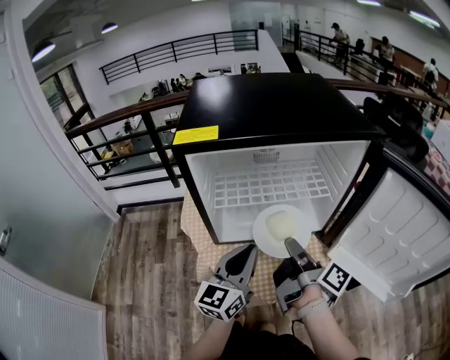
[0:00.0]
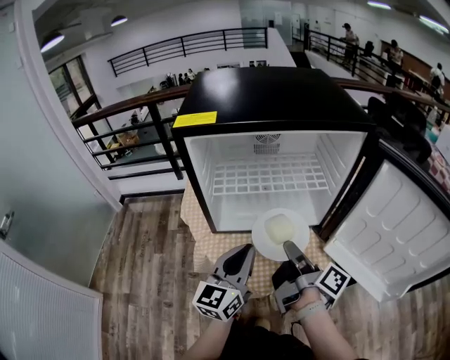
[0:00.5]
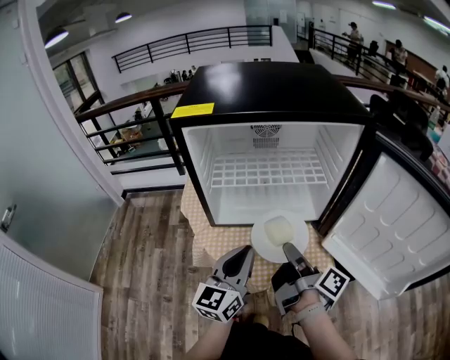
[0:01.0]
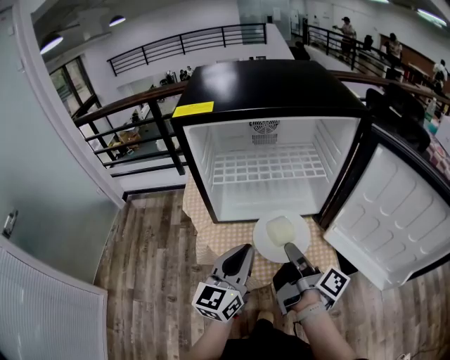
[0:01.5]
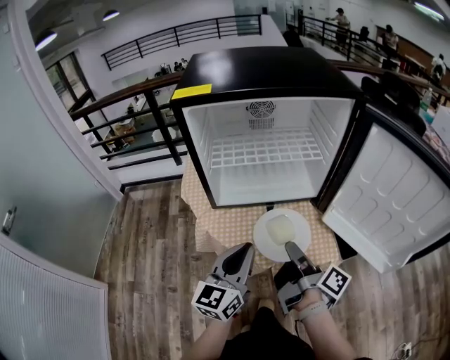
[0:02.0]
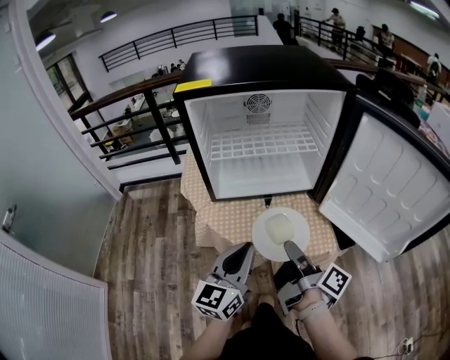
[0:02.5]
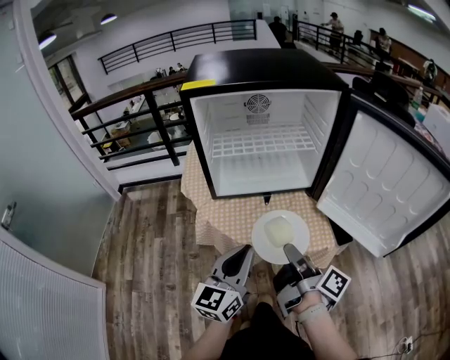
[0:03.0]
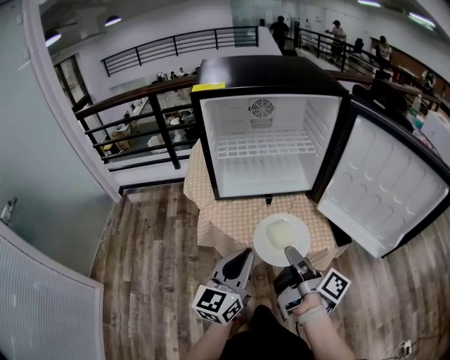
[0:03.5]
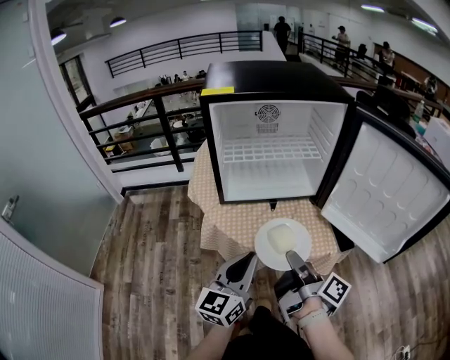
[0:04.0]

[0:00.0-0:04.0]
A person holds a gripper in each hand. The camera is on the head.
0:00.0 to 0:02.0: The grippers both shift backward by roughly 10 cm.
0:02.0 to 0:04.0: The two grippers go about 10 cm backward.

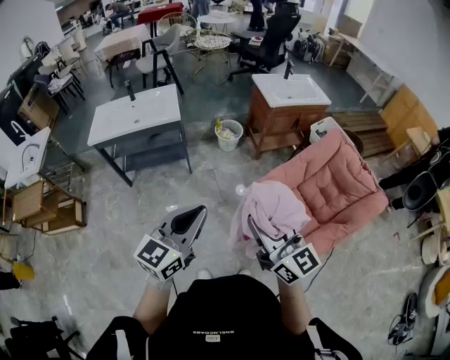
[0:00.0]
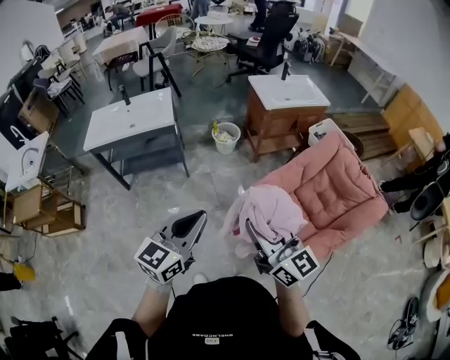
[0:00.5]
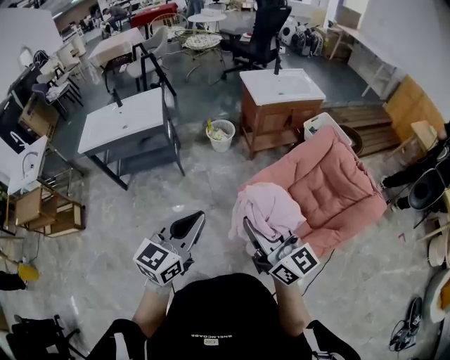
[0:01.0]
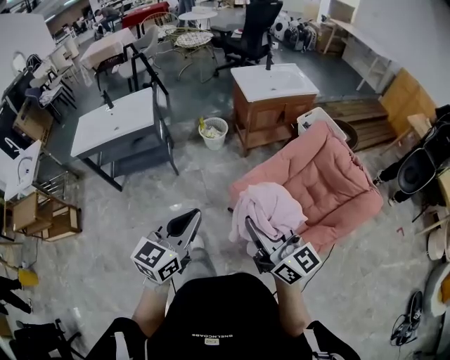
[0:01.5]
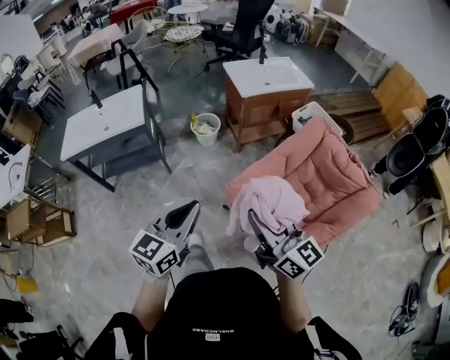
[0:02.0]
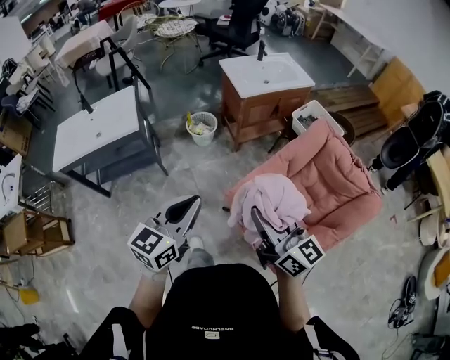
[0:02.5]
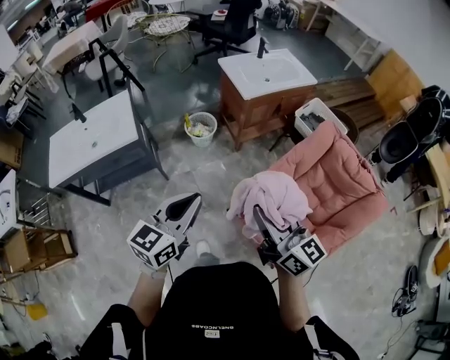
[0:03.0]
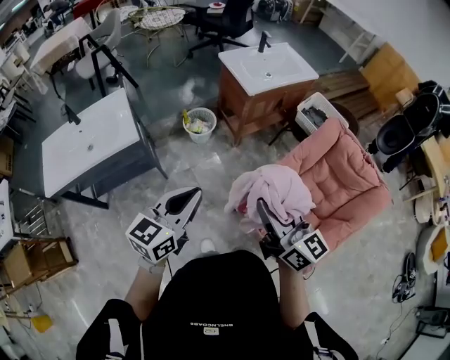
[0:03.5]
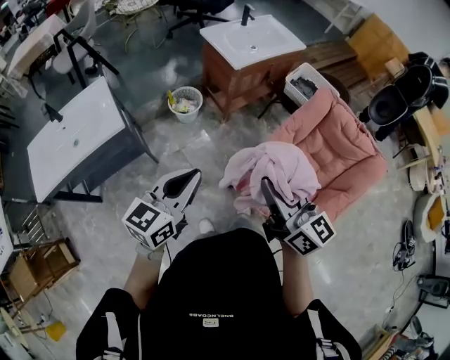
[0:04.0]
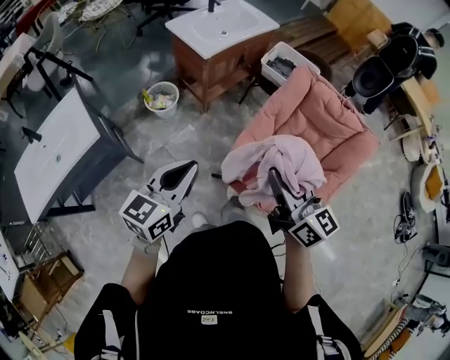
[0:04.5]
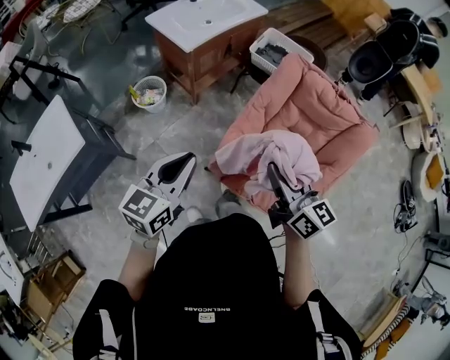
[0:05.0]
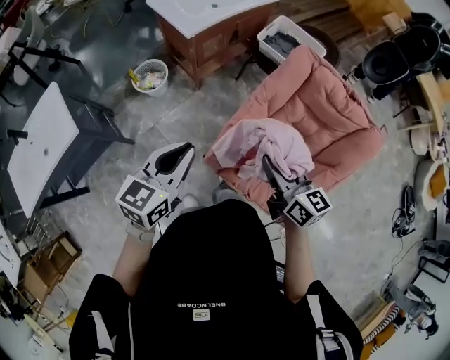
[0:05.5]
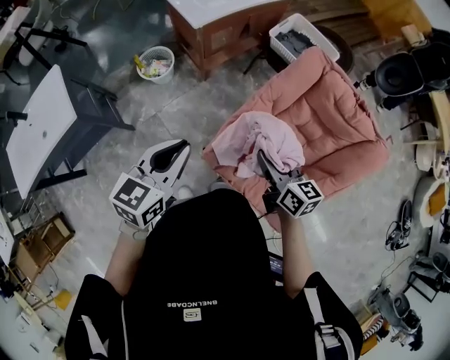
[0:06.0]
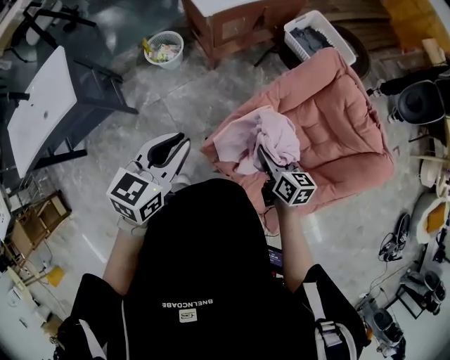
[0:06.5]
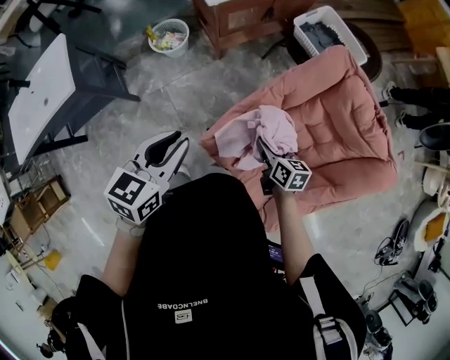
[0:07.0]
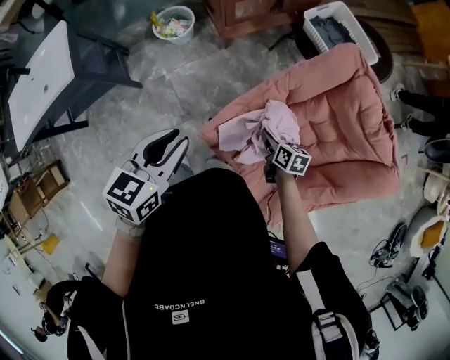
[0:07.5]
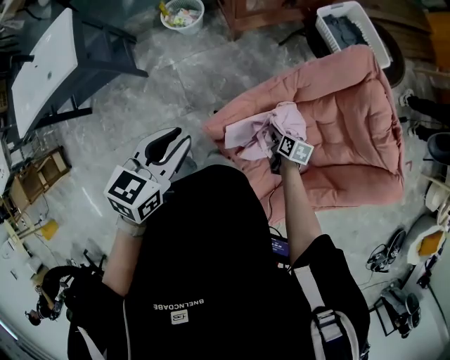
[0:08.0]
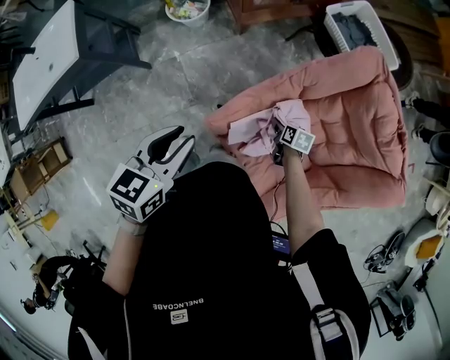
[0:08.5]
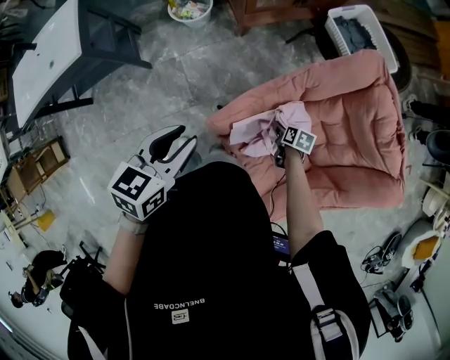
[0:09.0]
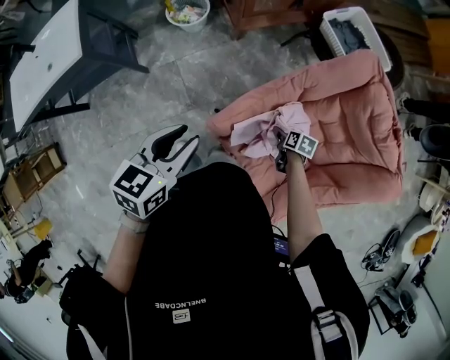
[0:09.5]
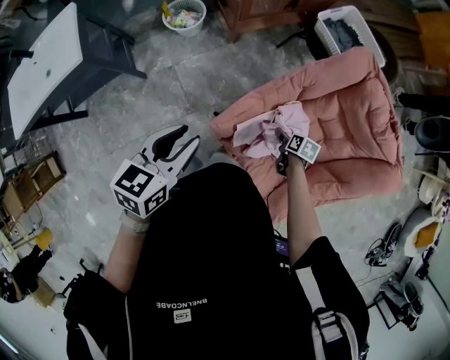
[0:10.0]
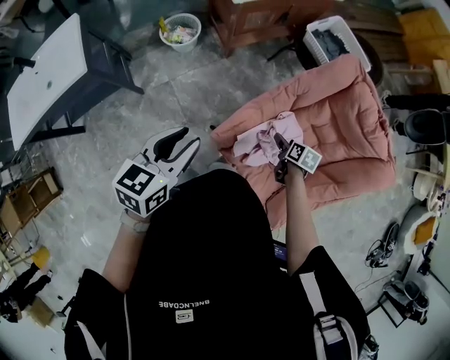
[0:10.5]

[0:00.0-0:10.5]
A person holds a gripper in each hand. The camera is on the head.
0:00.0 to 0:02.0: Both grippers move to the right and forward, about 20 cm.
0:02.0 to 0:04.0: The two grippers go some 30 cm forward and to the left. The left gripper swivels roughly 20 degrees.
0:04.0 to 0:06.5: The right gripper heads downward, to the right and forward, covering some 50 cm, and points its fingers approximately 30 degrees further downward; the left gripper travels forward, to the right and downward by some 35 cm.
0:06.5 to 0:08.5: The right gripper heads downward, covering roughly 30 cm, and rotates about 30 degrees. Meanwhile the left gripper shifts some 10 cm downward.
0:08.5 to 0:10.5: The right gripper goes some 15 cm upward and backward, while the left gripper heads to the left, covering about 10 cm.

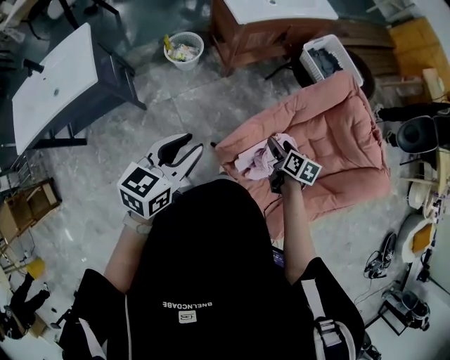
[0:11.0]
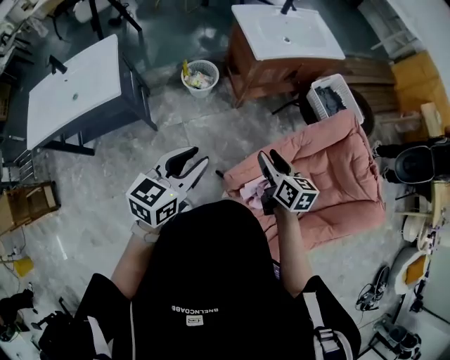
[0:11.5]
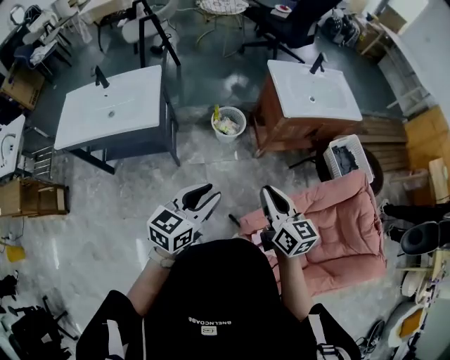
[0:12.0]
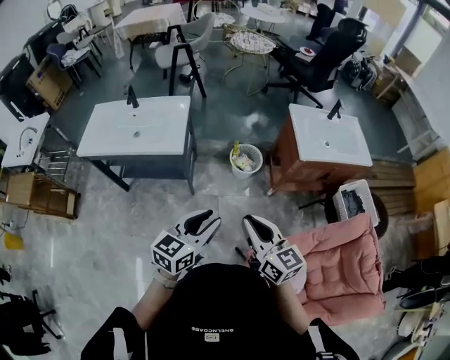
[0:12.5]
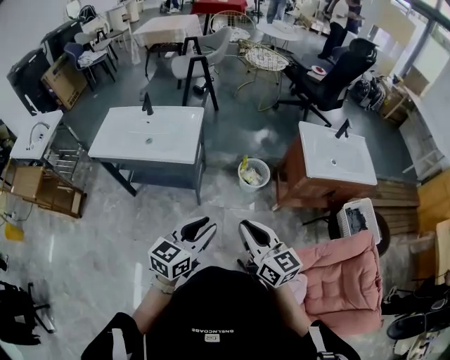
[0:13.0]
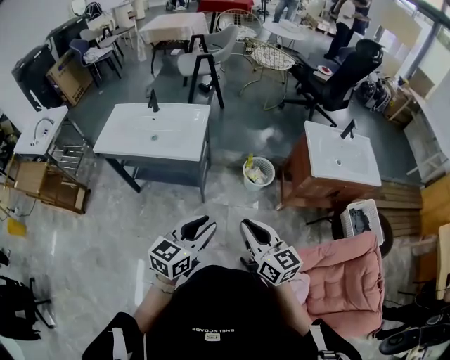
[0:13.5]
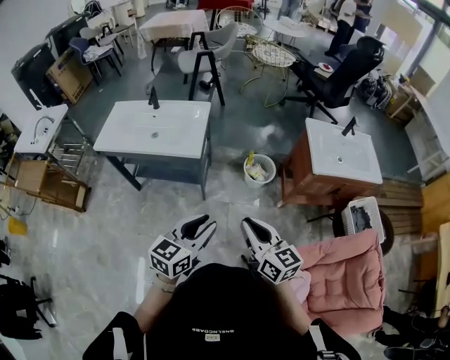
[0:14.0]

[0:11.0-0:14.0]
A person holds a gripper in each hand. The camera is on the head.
0:11.0 to 0:12.5: The left gripper ends up about 20 cm from where it was, and changes its angle by about 30 degrees. The right gripper ends up some 50 cm from where it was, points its fingers approximately 40 degrees further upward, and closes up.
0:12.5 to 0:14.0: The left gripper shifts approximately 5 cm to the left.

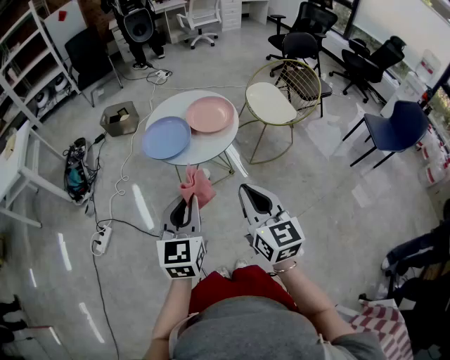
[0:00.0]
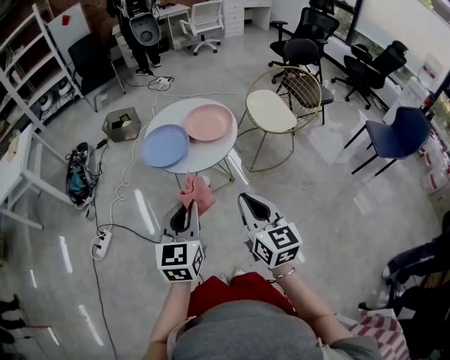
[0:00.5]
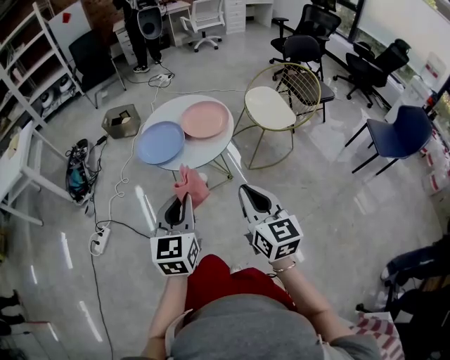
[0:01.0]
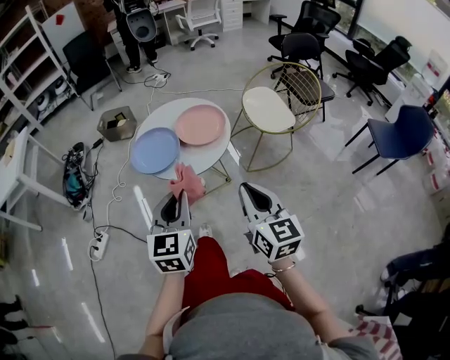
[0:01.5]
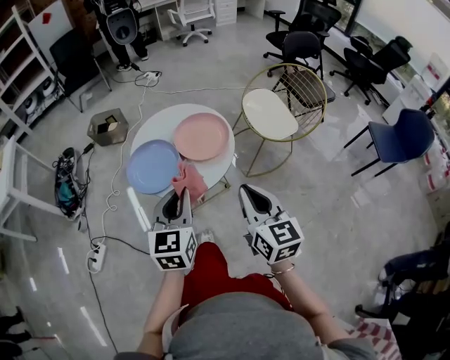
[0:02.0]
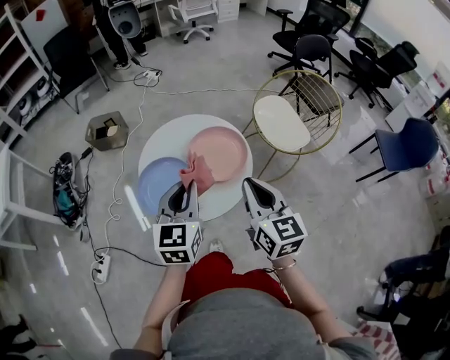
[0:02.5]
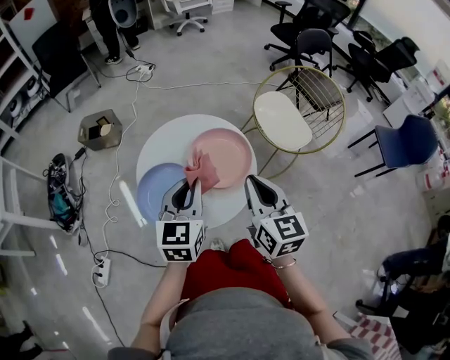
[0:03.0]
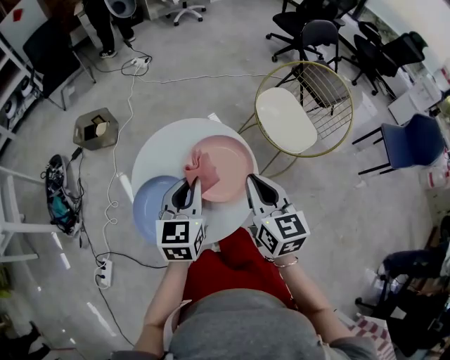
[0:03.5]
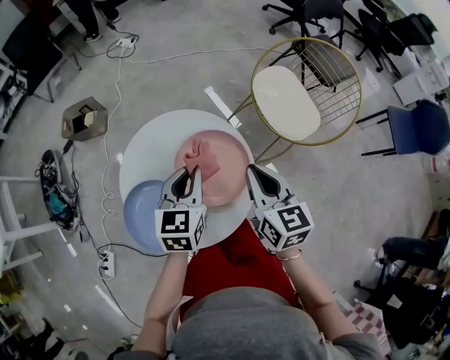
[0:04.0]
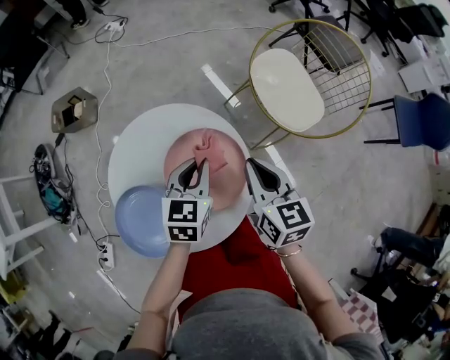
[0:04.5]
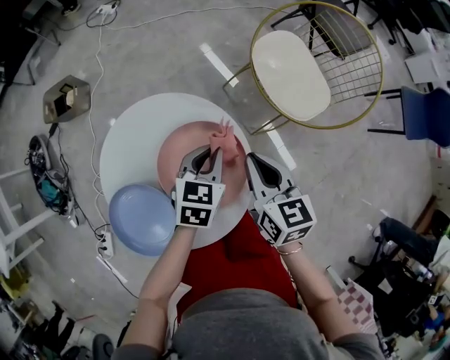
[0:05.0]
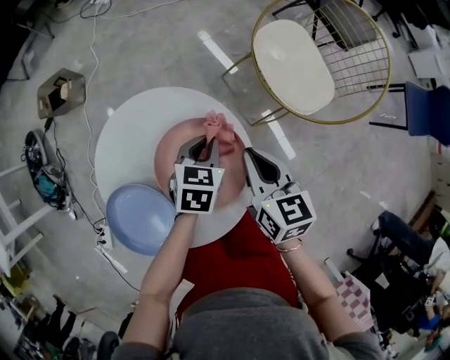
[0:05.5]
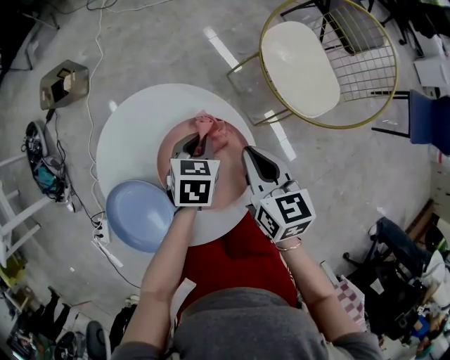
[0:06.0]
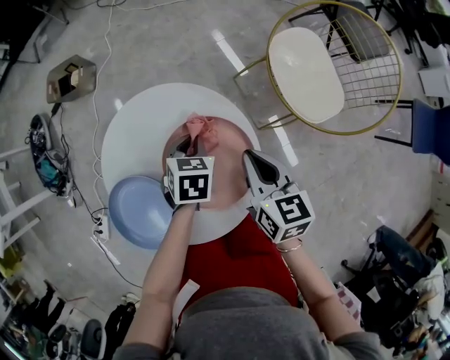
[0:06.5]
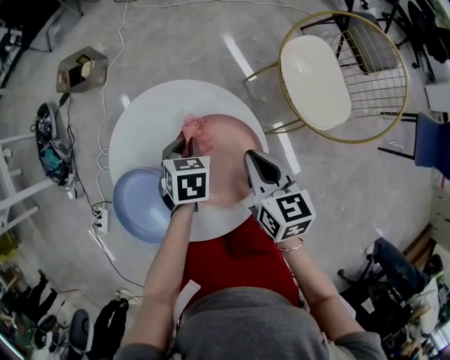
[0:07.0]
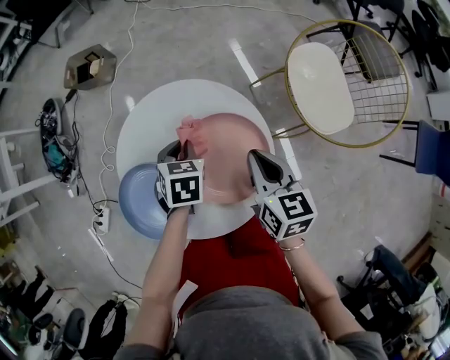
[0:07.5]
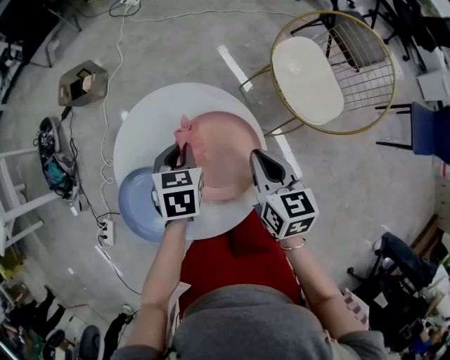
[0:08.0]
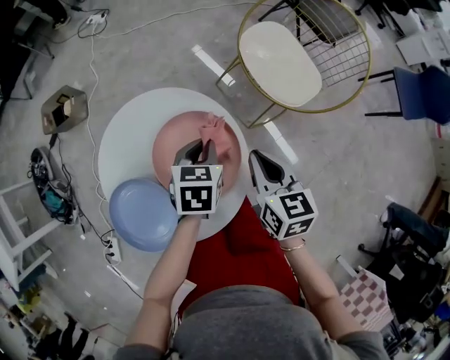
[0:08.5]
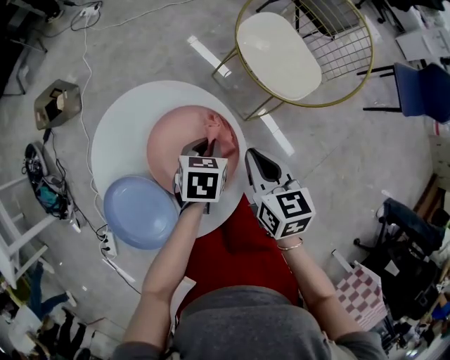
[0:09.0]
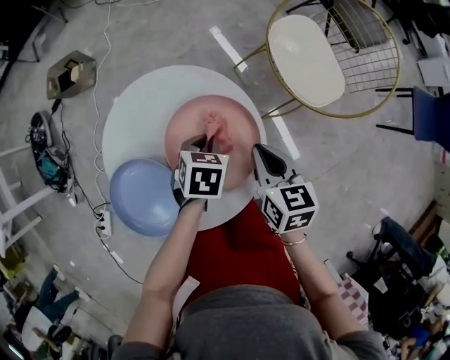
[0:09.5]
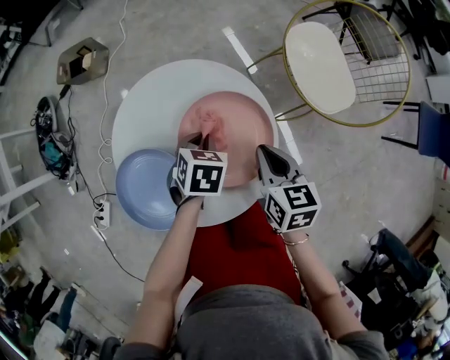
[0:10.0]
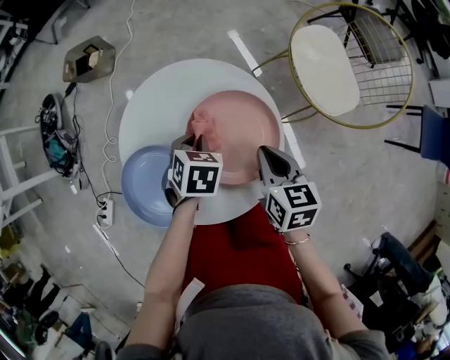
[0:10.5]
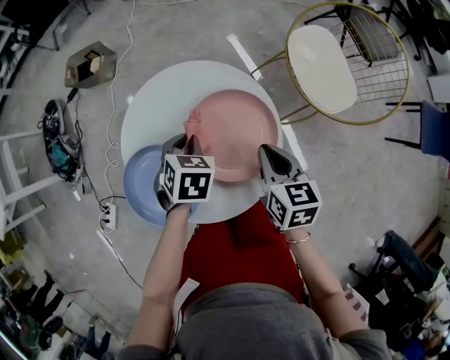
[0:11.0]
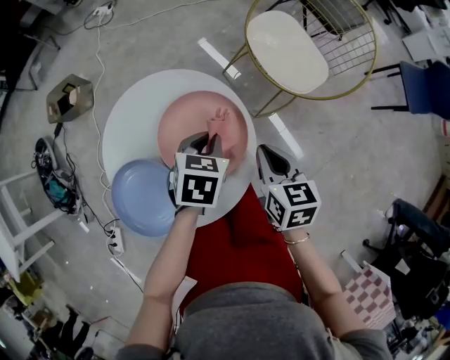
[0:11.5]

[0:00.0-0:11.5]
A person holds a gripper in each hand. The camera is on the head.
0:00.0 to 0:02.0: The right gripper goes some 15 cm forward and to the right; the left gripper travels forward by some 20 cm.
0:02.0 to 0:04.0: The two grippers go some 30 cm forward.
0:04.0 to 0:06.0: The left gripper moves downward and forward, about 20 cm, and changes its angle by approximately 30 degrees. Meanwhile the right gripper shifts about 10 cm downward and forward.
0:06.0 to 0:07.5: The left gripper goes approximately 10 cm to the left.
0:07.5 to 0:09.5: The right gripper moves roughly 5 cm, while the left gripper ends up some 10 cm from where it was.
0:09.5 to 0:11.5: The left gripper travels upward by roughly 5 cm.
